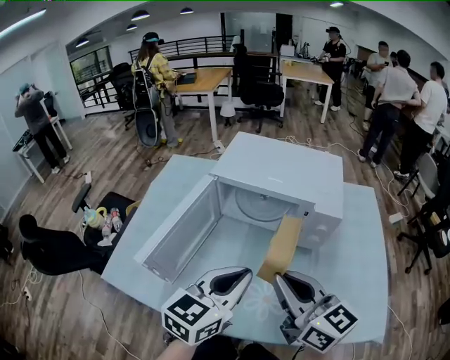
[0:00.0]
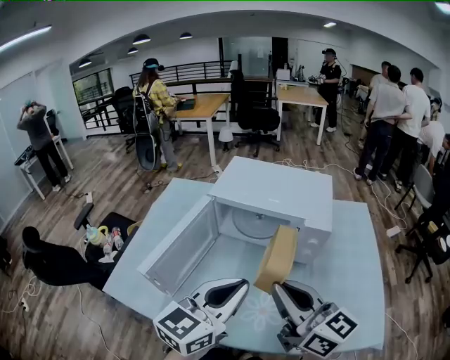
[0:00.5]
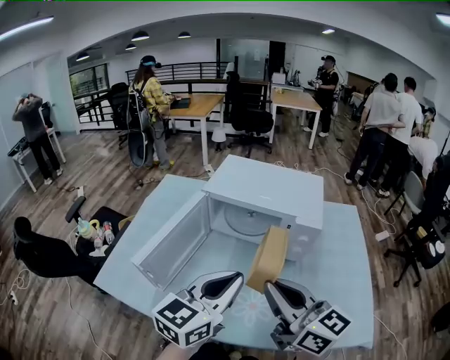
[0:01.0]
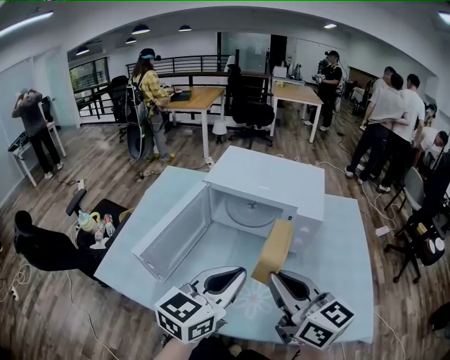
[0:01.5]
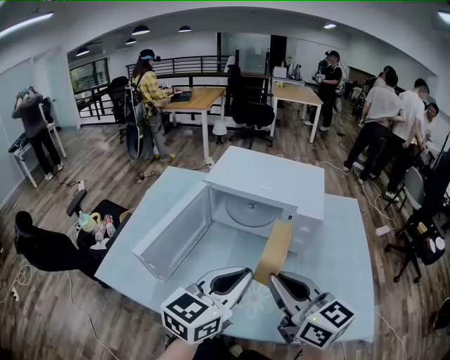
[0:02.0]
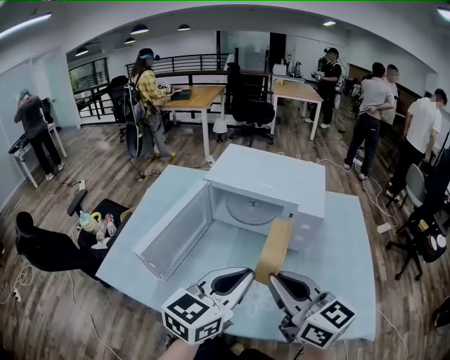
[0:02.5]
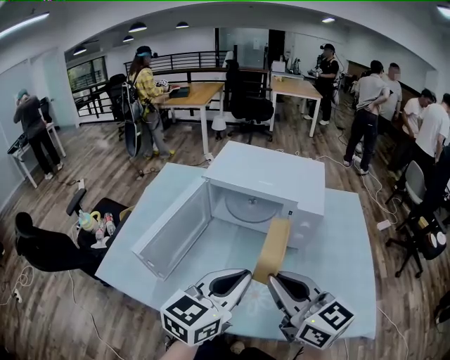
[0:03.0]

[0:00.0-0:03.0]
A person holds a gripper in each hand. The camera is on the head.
0:00.0 to 0:03.0: The grippers stay close to where they were, moving slightly.

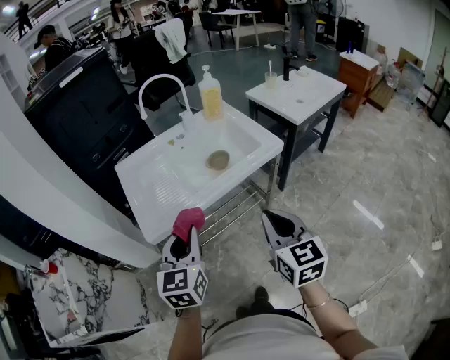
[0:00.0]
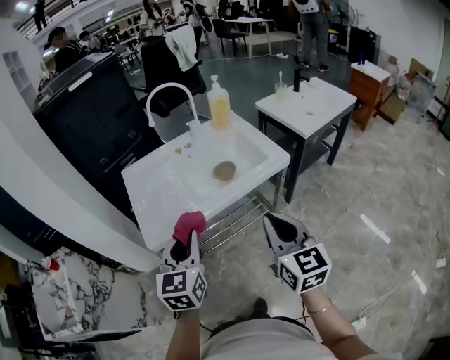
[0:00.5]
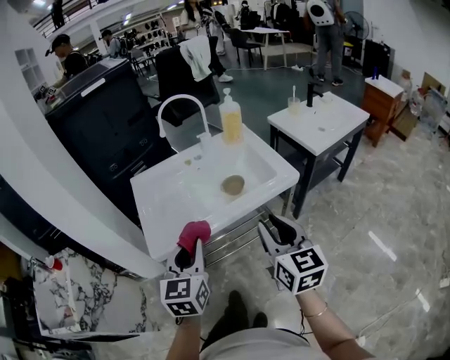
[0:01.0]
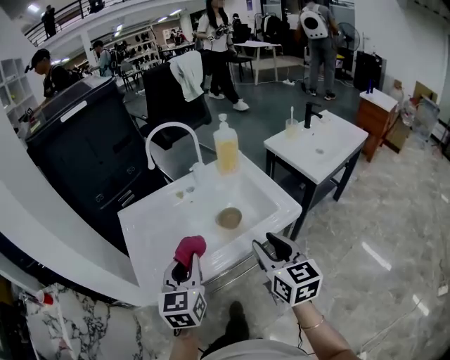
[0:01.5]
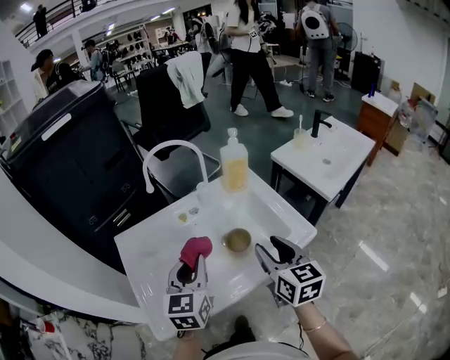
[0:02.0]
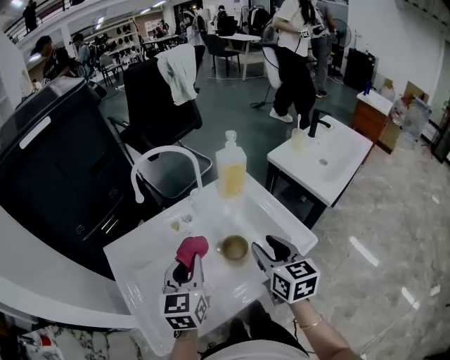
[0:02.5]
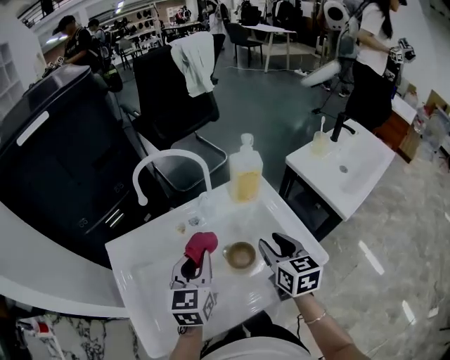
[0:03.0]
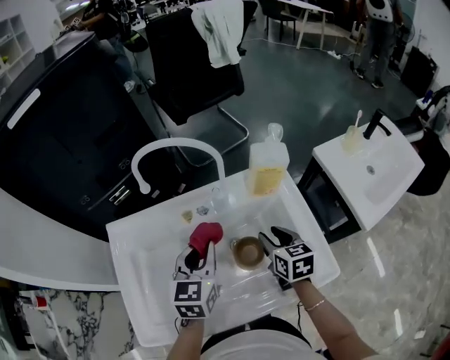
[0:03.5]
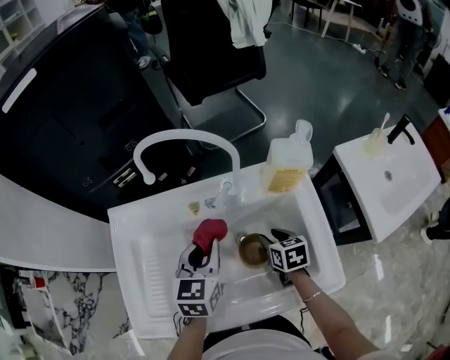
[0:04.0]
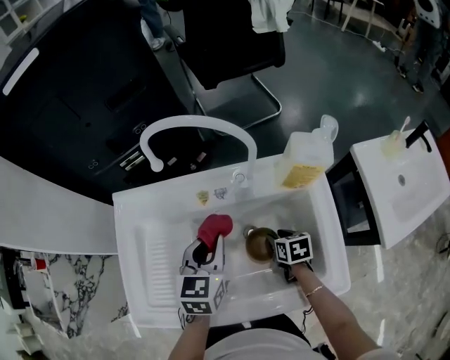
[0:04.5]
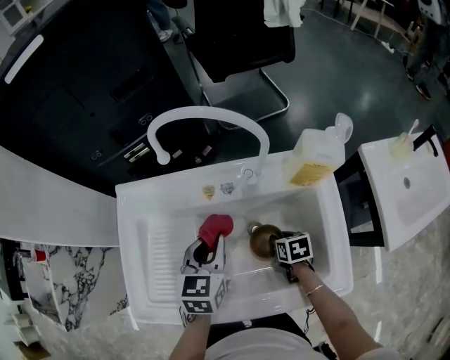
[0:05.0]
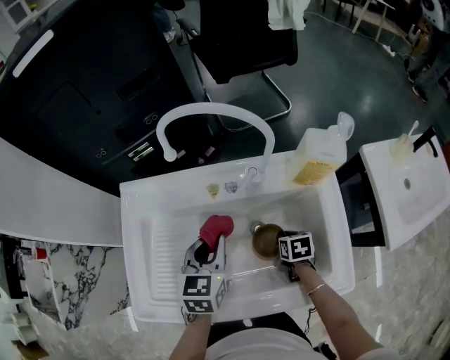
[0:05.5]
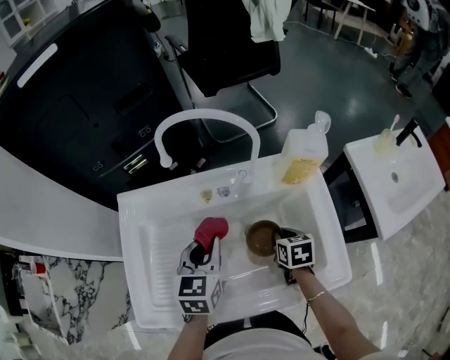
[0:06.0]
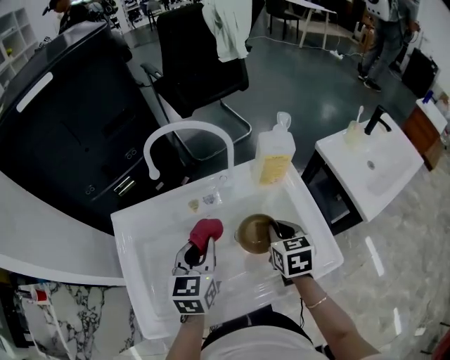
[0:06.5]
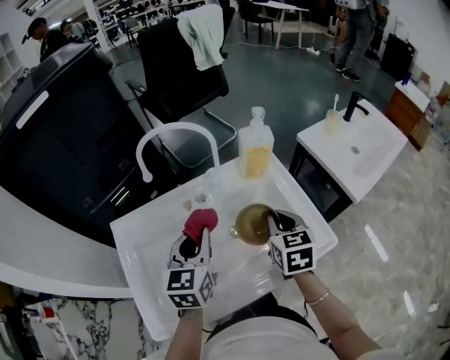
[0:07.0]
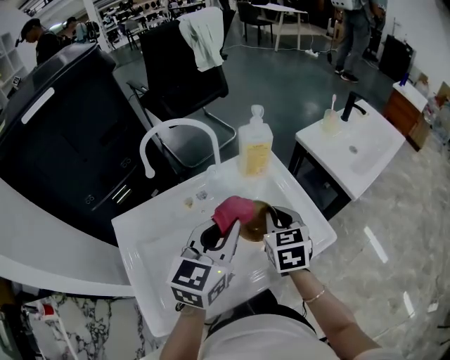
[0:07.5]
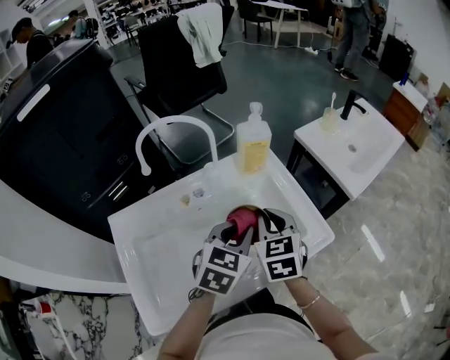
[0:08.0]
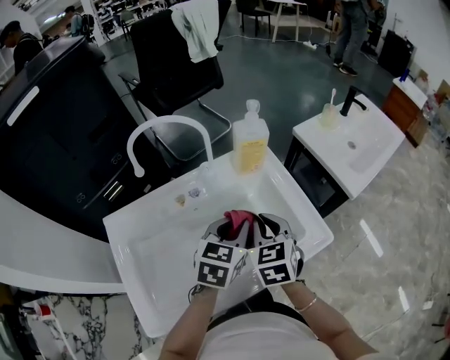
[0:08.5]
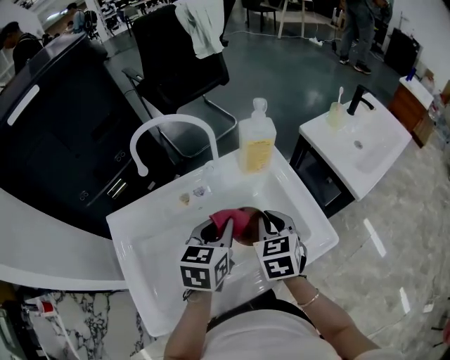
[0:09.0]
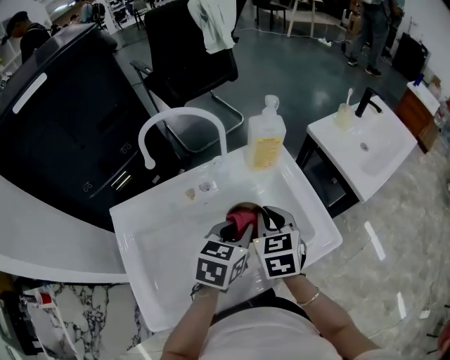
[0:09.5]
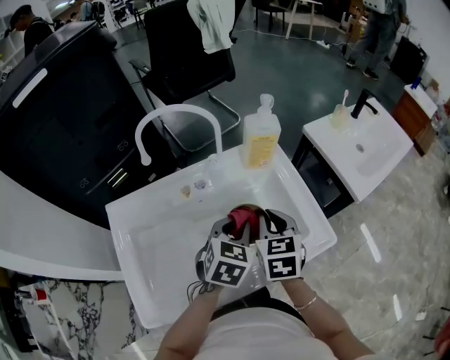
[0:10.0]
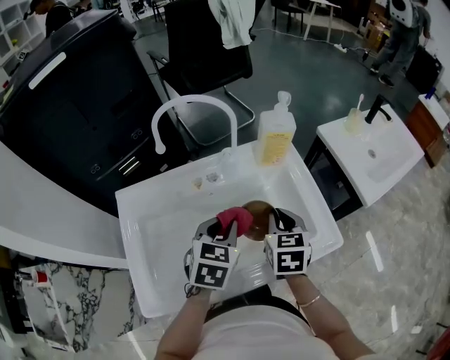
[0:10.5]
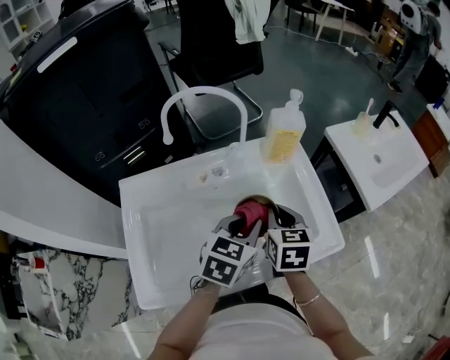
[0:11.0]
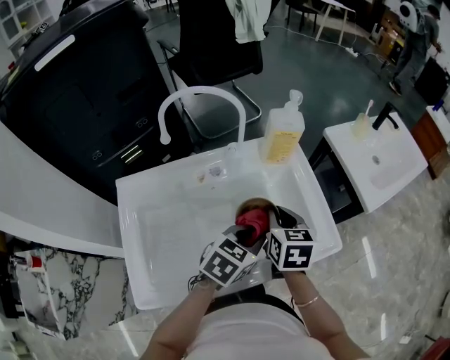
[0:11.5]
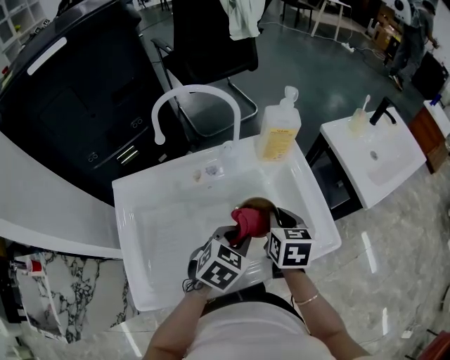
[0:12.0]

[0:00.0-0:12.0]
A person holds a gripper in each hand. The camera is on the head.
0:00.0 to 0:02.0: Both grippers move forward, roughly 30 cm. The right gripper opens up.
0:02.0 to 0:04.0: The left gripper is displaced forward and downward by about 20 cm, and turns by some 20 degrees; the right gripper goes about 35 cm downward and forward, and tilts its fingers approximately 30 degrees downward.
0:04.0 to 0:06.0: The right gripper travels downward and back again, about 10 cm each way, and closes its fingers.
0:06.0 to 0:08.0: The left gripper ends up approximately 15 cm from where it was, and changes its angle by some 40 degrees. Meanwhile the right gripper heads upward, covering roughly 20 cm, and changes its angle by some 30 degrees.
0:08.0 to 0:10.0: The left gripper moves some 5 cm.
0:10.0 to 0:12.0: The left gripper travels backward by some 5 cm, and moves roughly 5 cm to the left and comes back.

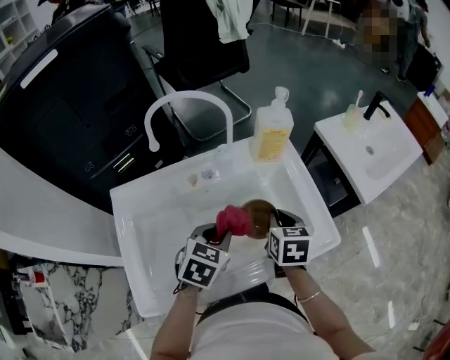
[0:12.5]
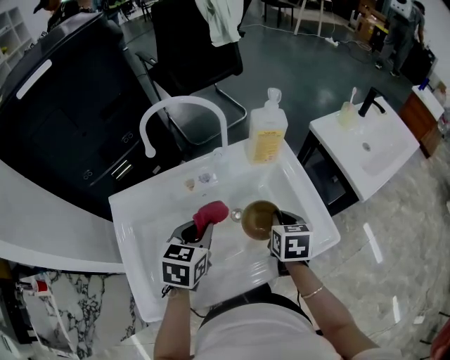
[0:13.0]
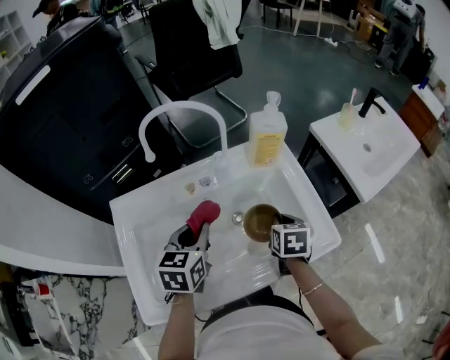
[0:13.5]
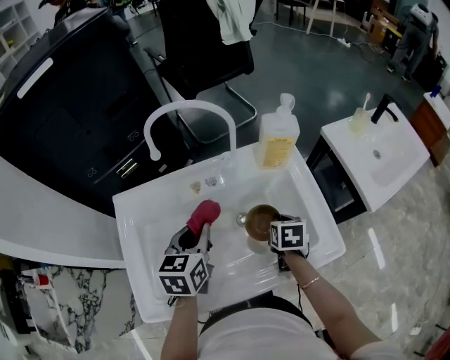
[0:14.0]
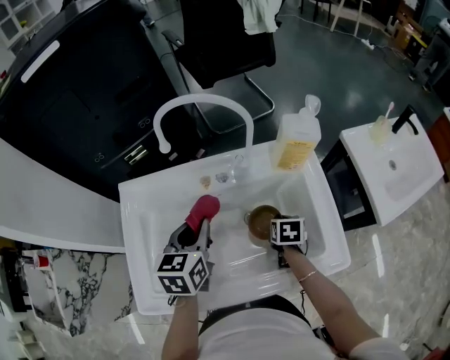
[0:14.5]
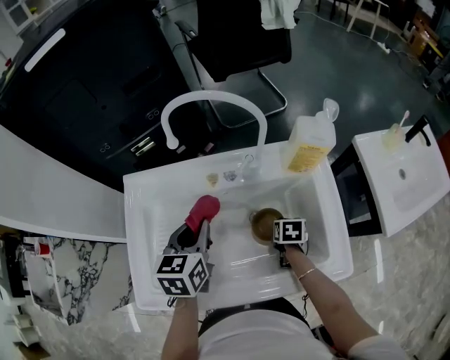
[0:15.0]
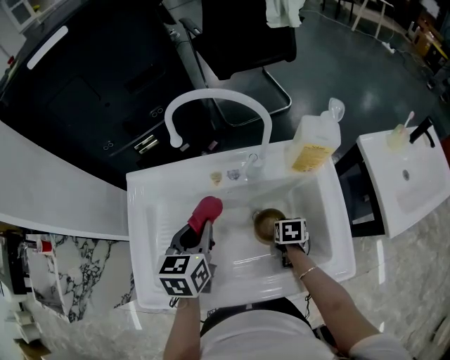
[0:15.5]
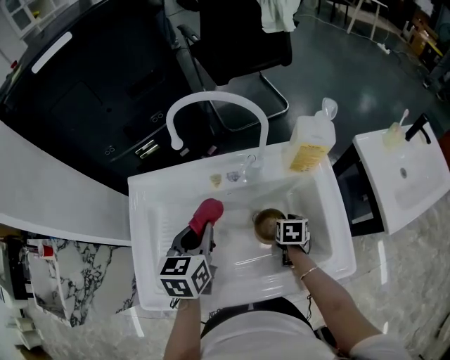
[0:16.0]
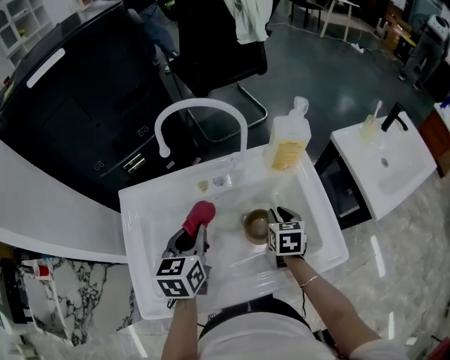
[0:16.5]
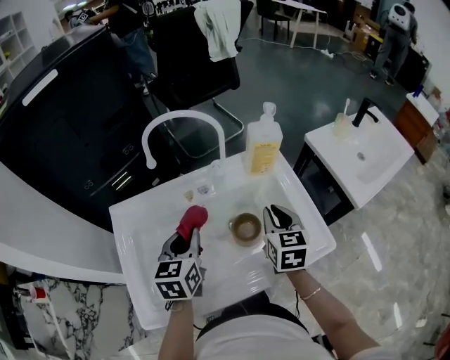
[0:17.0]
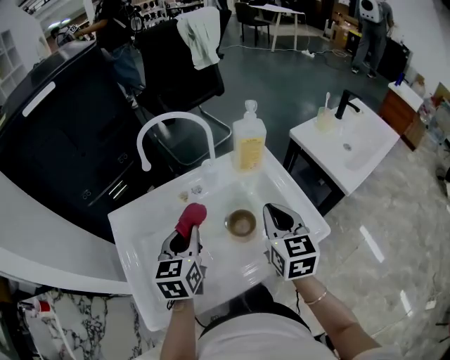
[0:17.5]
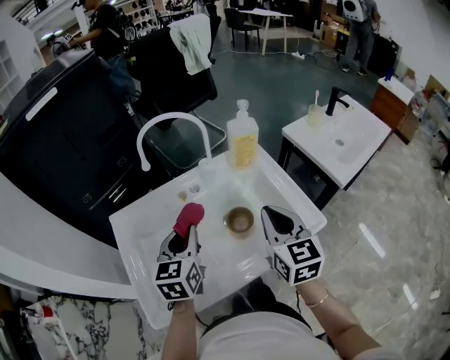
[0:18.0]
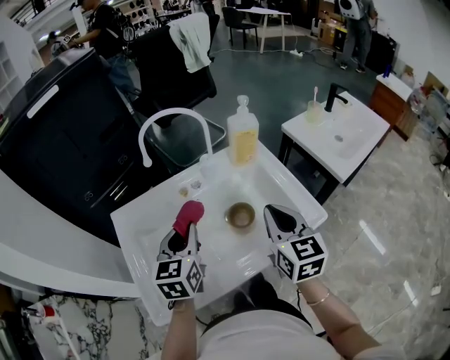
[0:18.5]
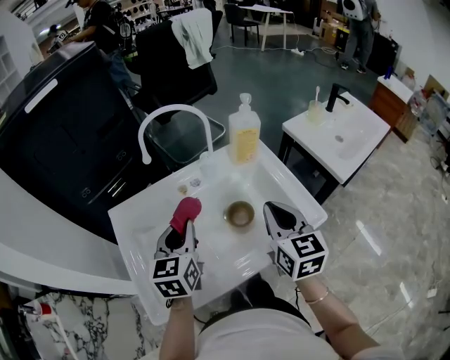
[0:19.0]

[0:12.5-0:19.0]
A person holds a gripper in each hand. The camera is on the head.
0:12.5 to 0:14.5: The left gripper shifts about 10 cm to the left, and changes its angle by approximately 40 degrees; the right gripper goes approximately 15 cm downward and forward.
0:14.5 to 0:17.0: The right gripper goes about 20 cm upward, and tilts its fingers approximately 30 degrees upward.
0:17.0 to 0:19.0: The left gripper ends up about 5 cm from where it was. The right gripper travels backward and upward by about 15 cm.

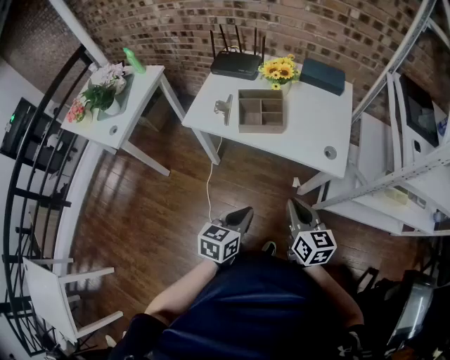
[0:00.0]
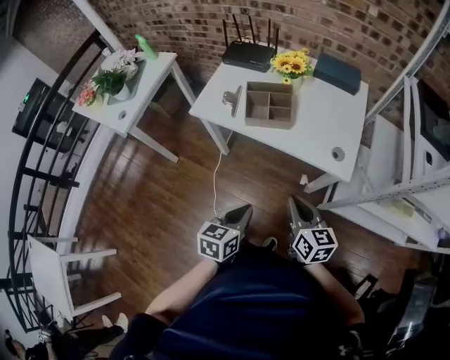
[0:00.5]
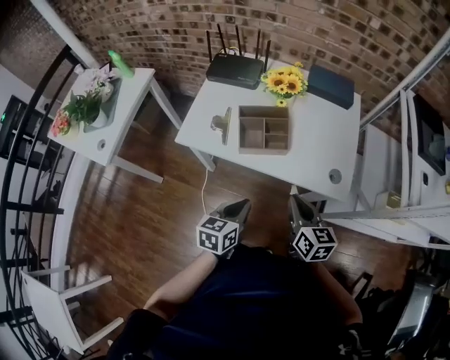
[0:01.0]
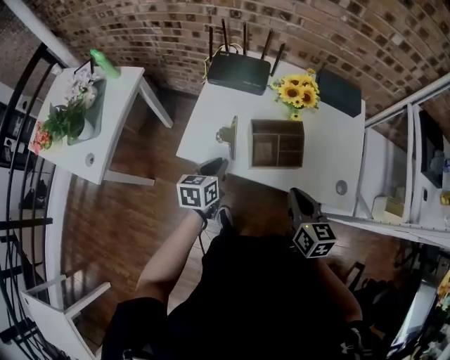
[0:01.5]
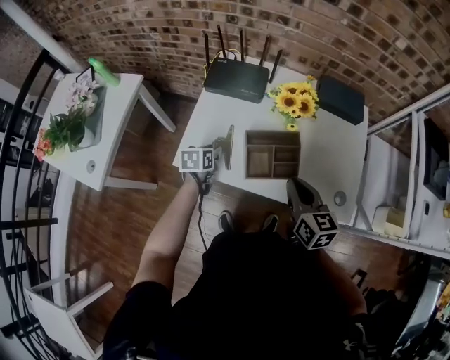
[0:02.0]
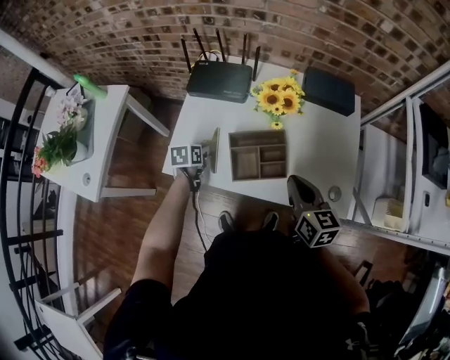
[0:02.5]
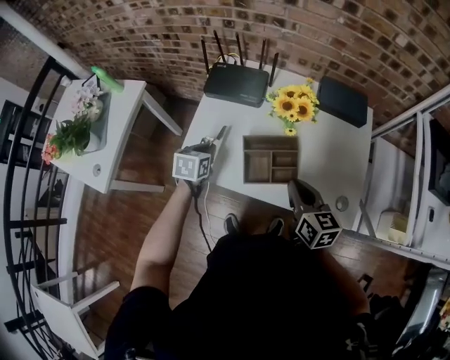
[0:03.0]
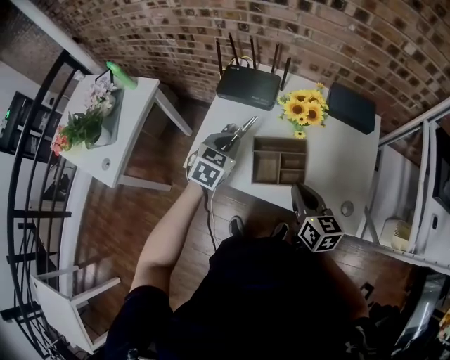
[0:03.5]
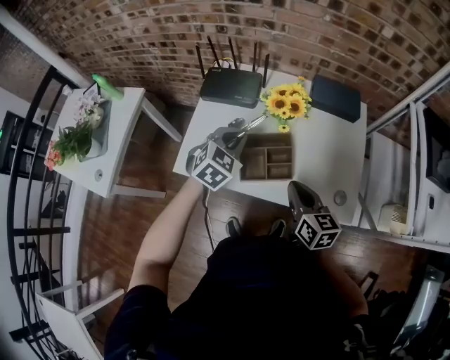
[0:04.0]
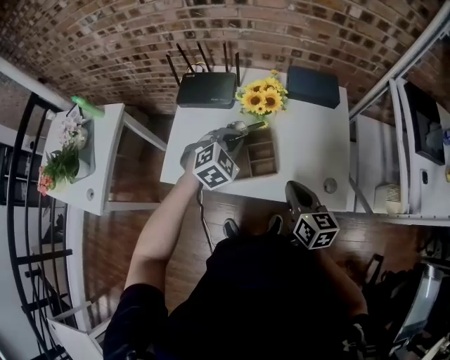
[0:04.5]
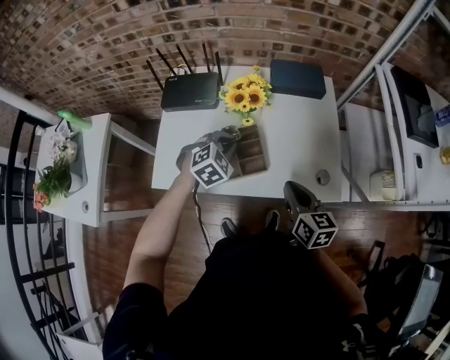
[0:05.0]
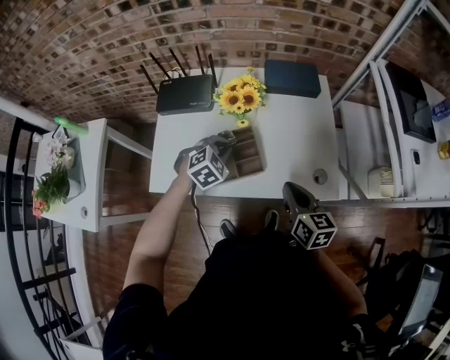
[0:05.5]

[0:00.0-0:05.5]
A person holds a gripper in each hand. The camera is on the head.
0:00.0 to 0:02.0: The left gripper travels forward and to the left by some 50 cm, swivels approximately 20 degrees, and opens its fingers. The right gripper moves forward, approximately 30 cm.
0:02.0 to 0:03.5: The left gripper is displaced upward by approximately 15 cm, swivels about 40 degrees, and closes.
0:03.5 to 0:05.5: The left gripper heads to the right and downward, covering some 15 cm, and turns by about 40 degrees, while the right gripper moves to the right, approximately 10 cm.
